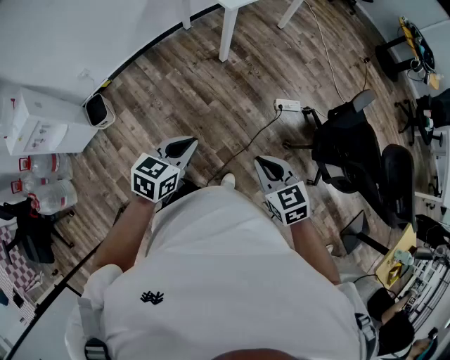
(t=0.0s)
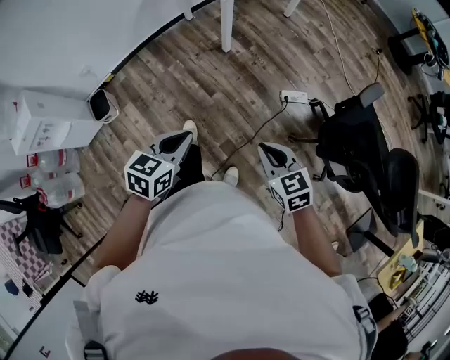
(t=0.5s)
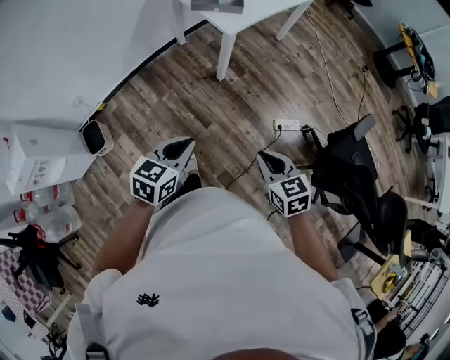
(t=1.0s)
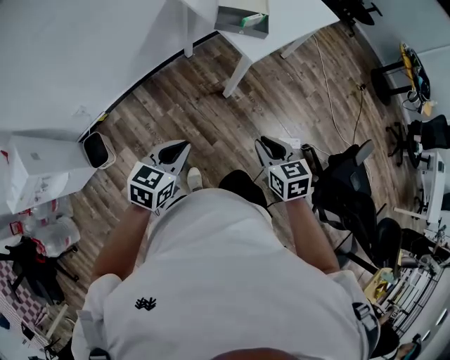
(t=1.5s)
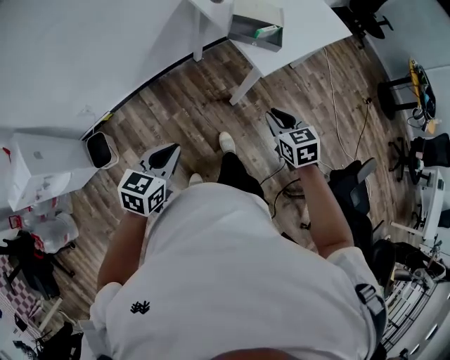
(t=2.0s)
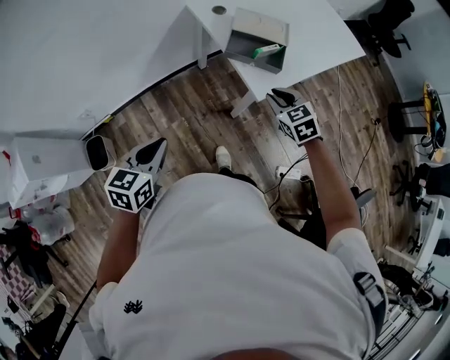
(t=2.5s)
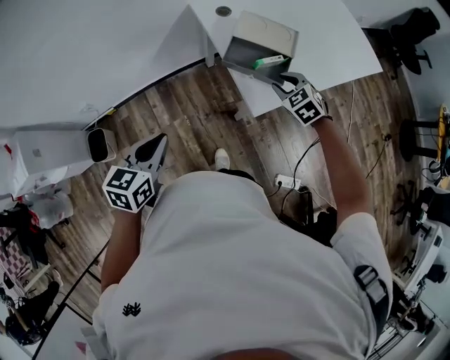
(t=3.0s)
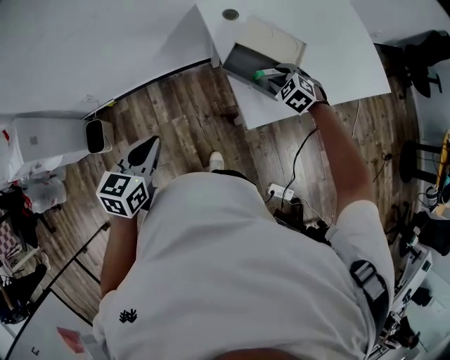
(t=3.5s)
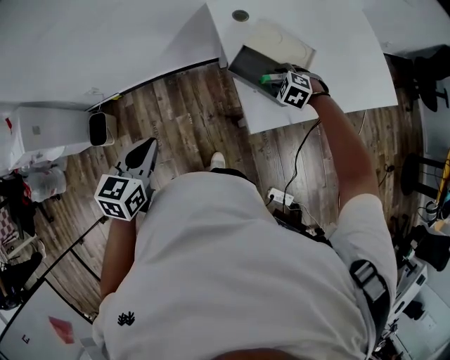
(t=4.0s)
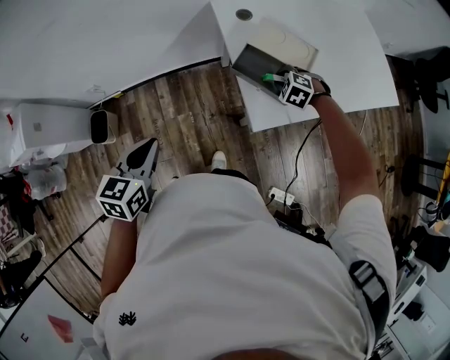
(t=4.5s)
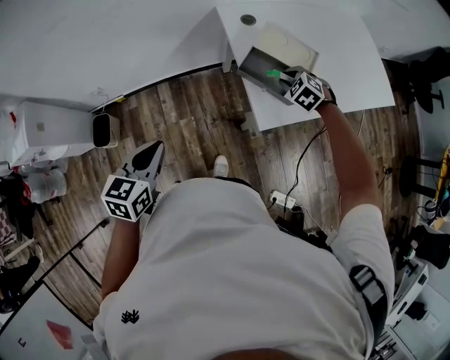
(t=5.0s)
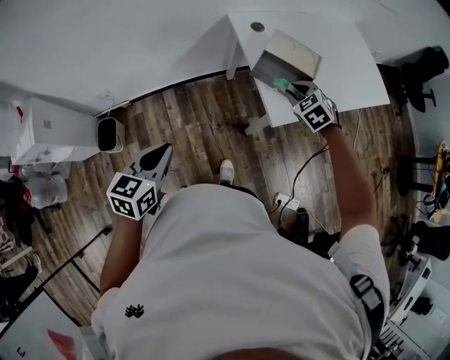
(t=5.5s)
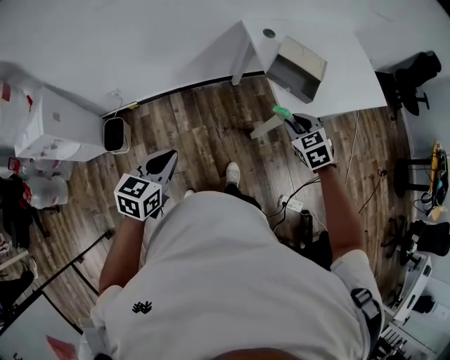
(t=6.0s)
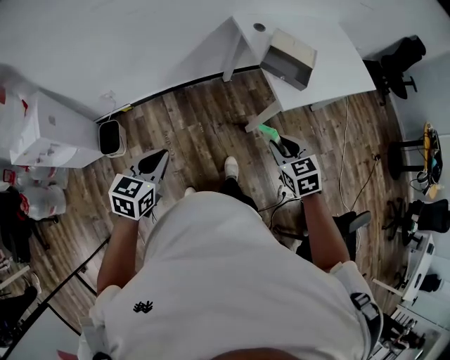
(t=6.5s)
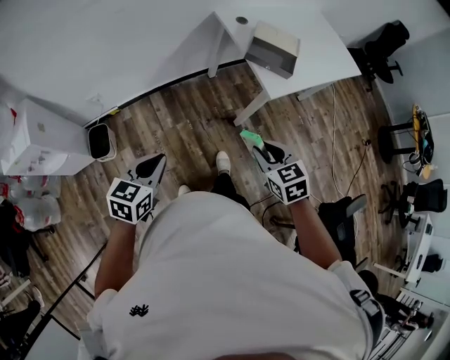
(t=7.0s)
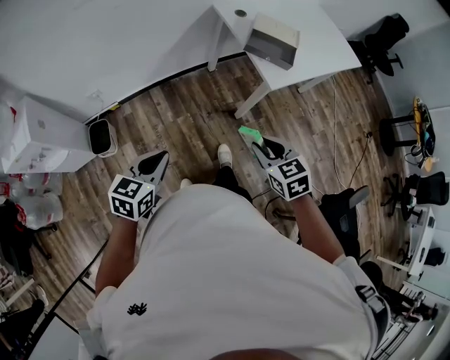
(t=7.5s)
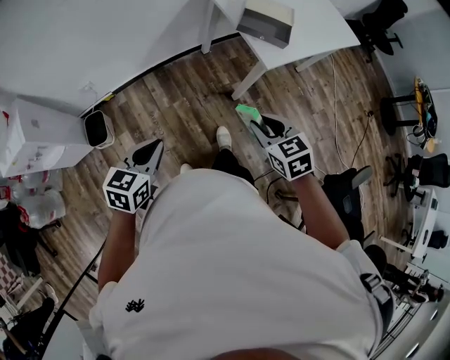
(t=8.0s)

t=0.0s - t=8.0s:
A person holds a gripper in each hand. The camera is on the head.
t=0.0s - t=2.0s: The right gripper heads forward, covering about 50 cm. The left gripper shifts some 35 cm forward and to the left.
t=2.0s - t=4.0s: The left gripper changes place by about 20 cm, and turns by roughly 30 degrees. The right gripper shifts by roughly 40 cm, rolls counterclockwise, seen from behind, by approximately 60 degrees, and opens up.
t=4.0s - t=6.0s: The right gripper is displaced backward, upward and to the left by roughly 30 cm, turns by roughly 40 degrees, and closes. Meanwhile the left gripper travels to the left and backward by about 15 cm.
t=6.0s - t=8.0s: The left gripper shifts some 10 cm backward. The right gripper moves backward, some 20 cm, and rotates approximately 20 degrees.

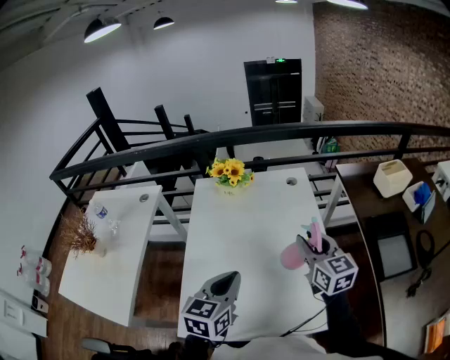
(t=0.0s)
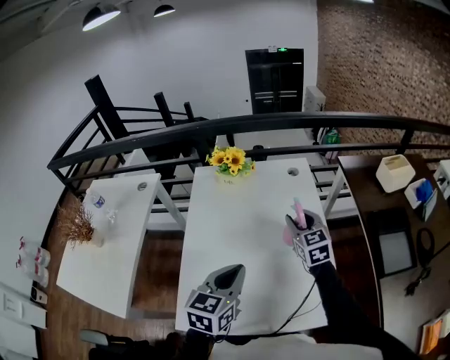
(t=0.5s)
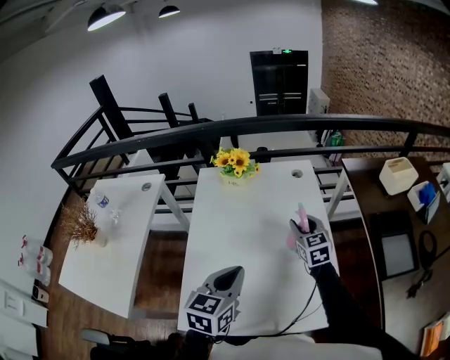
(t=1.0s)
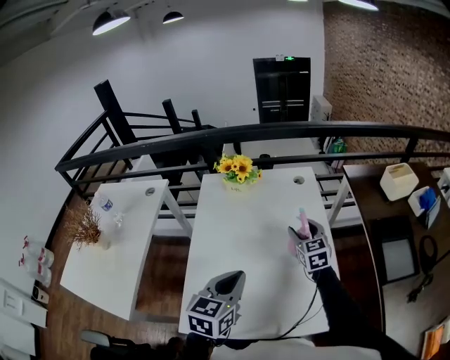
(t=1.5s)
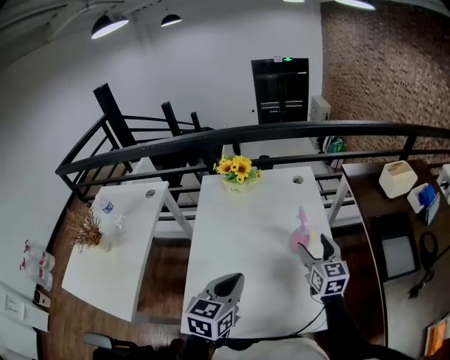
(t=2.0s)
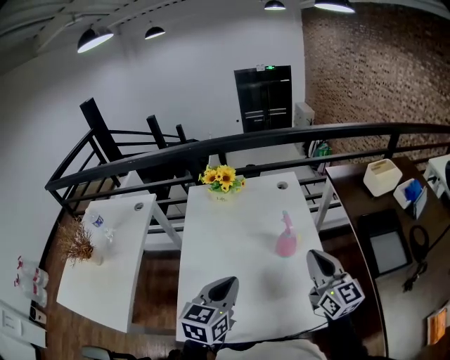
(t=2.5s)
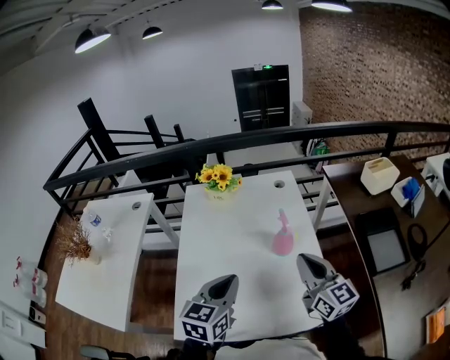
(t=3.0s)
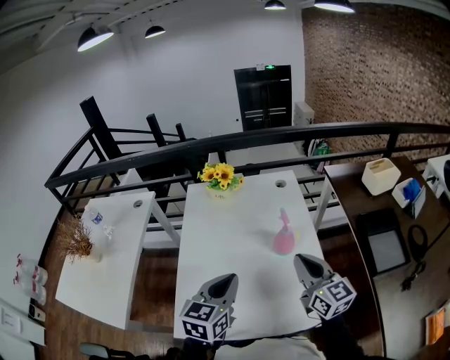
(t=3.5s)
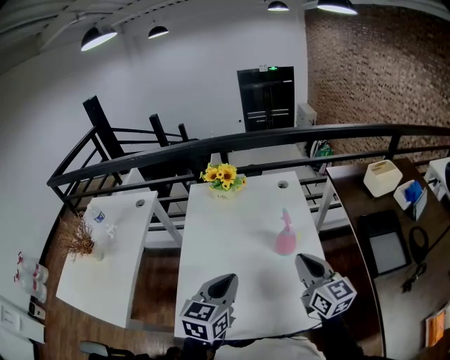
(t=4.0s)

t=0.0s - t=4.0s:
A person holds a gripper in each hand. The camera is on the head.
t=0.0s - t=2.0s: The right gripper is displaced downward by roughly 5 cm, travels forward and back again, roughly 10 cm each way, and opens up.
t=2.0s - t=4.0s: The right gripper heads backward and upward, covering approximately 10 cm, and closes its fingers.

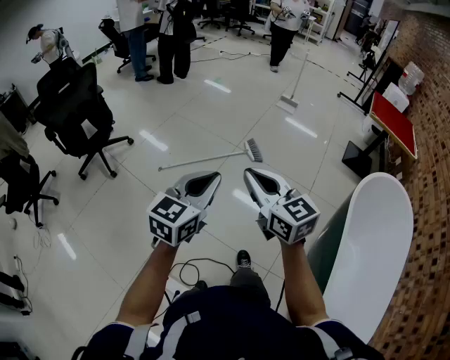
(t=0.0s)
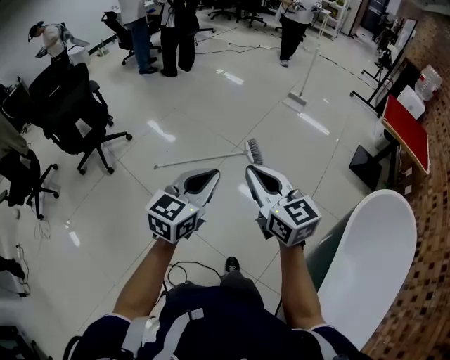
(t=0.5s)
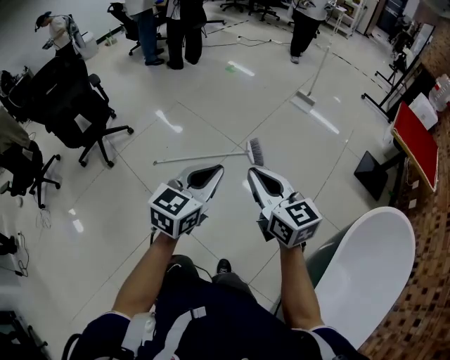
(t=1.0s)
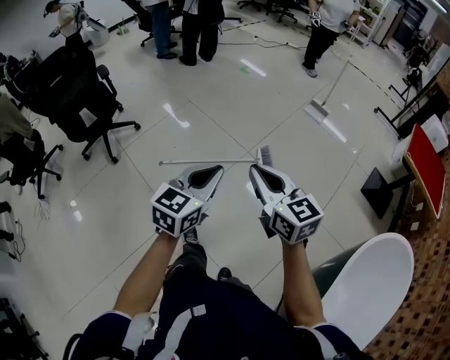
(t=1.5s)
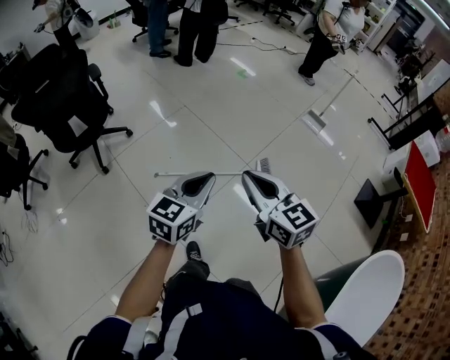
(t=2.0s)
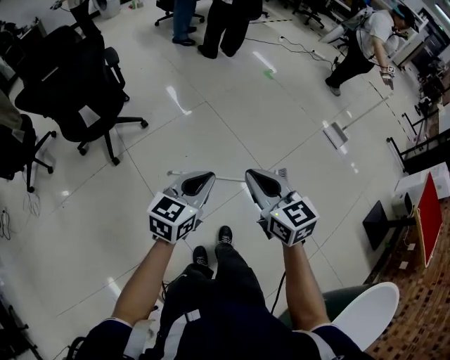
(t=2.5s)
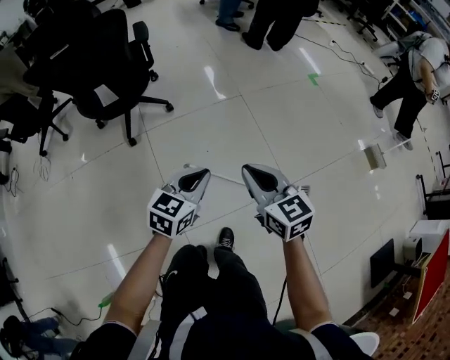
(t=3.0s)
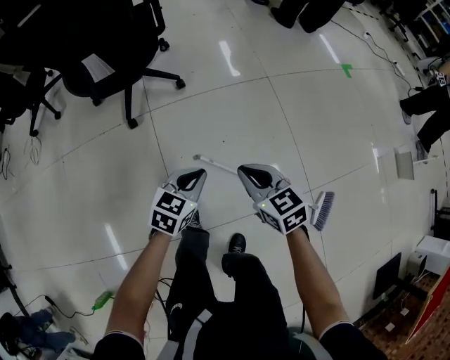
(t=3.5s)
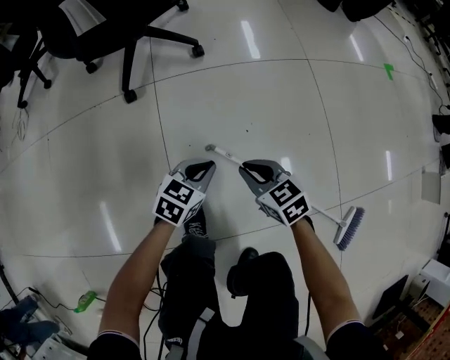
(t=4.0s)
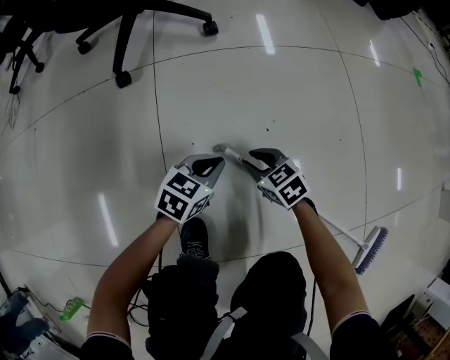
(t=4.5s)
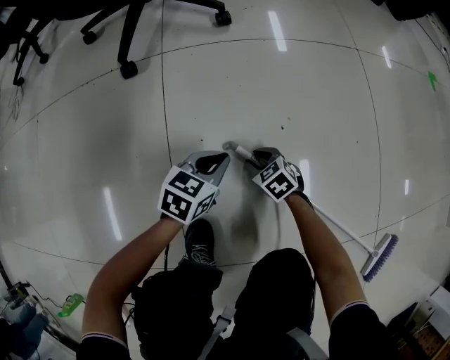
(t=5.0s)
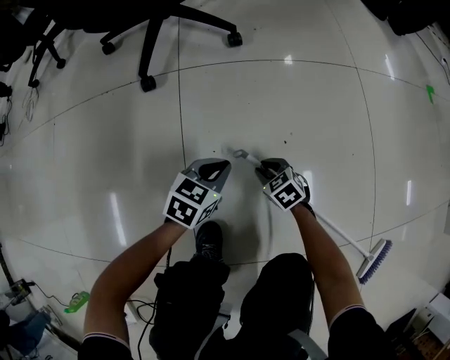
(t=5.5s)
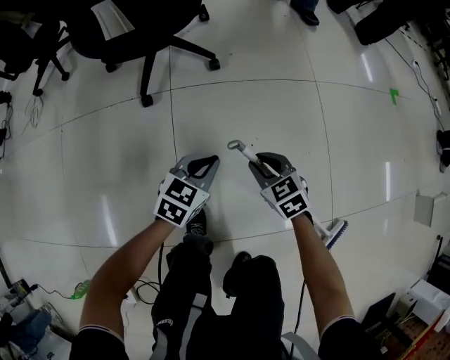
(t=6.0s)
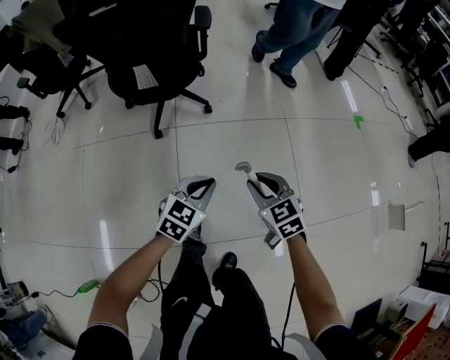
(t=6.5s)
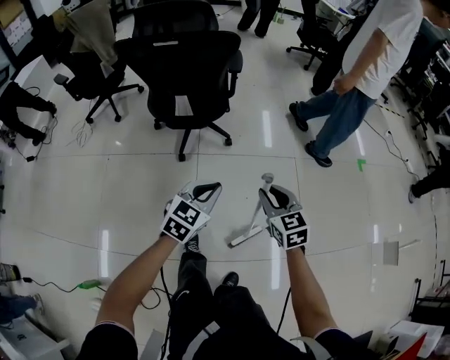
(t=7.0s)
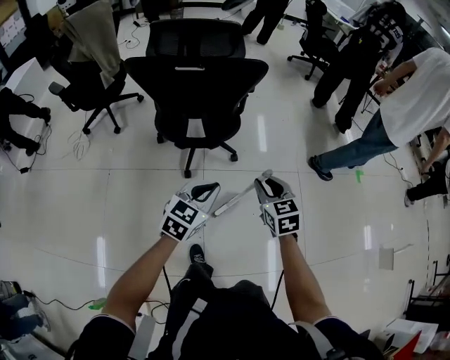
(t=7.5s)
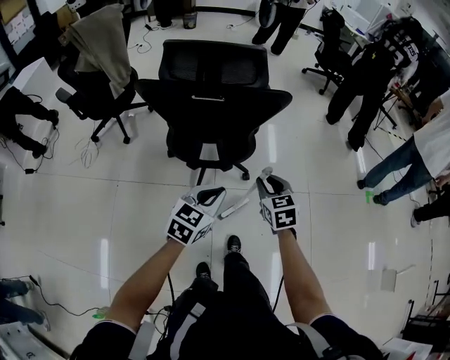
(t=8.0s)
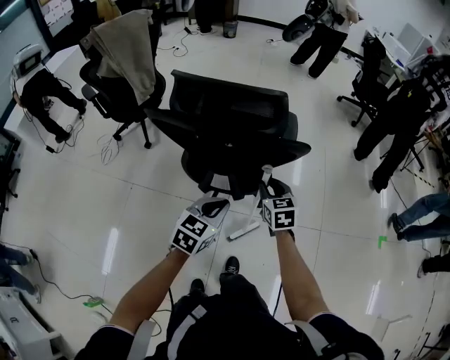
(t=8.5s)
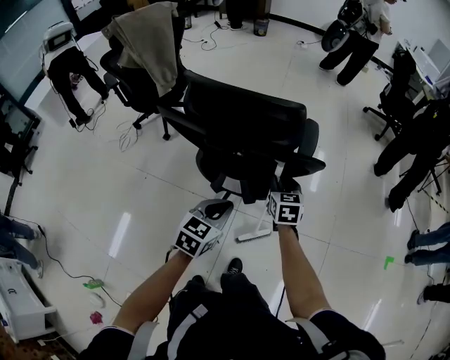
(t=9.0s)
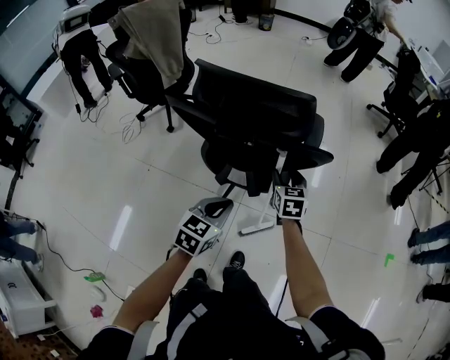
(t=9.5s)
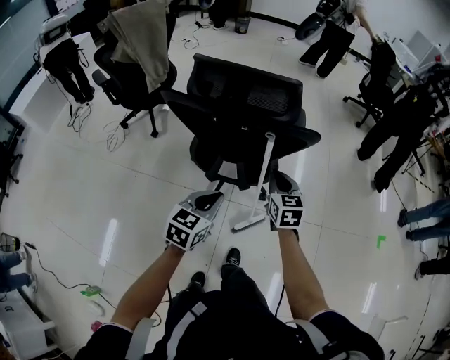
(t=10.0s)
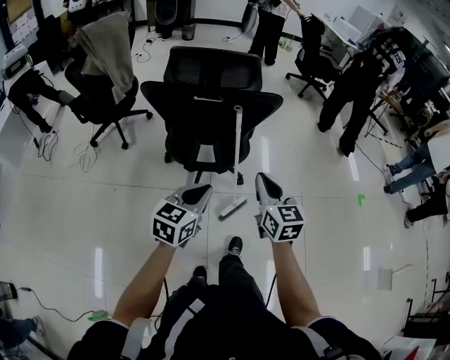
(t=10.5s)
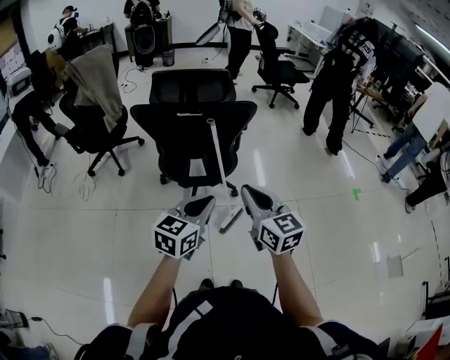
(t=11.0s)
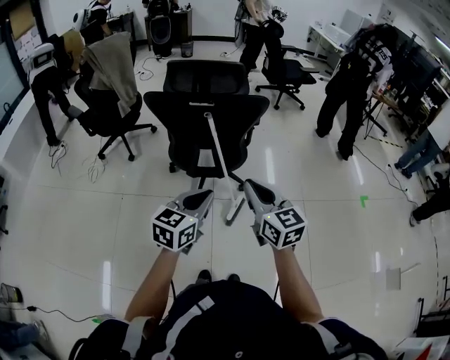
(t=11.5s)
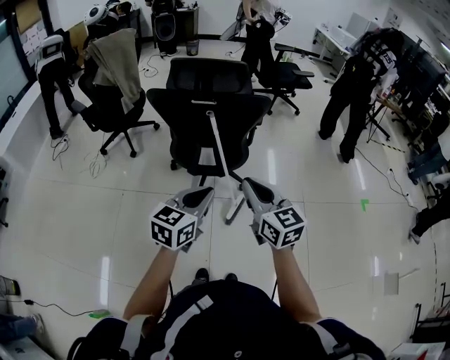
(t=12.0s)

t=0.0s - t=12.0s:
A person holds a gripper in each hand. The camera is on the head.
t=0.0s - t=2.0s: Both grippers move forward, approximately 35 cm.
t=2.0s - t=4.0s: The two grippers travel together, roughly 40 cm. Both grippers move downward, some 60 cm. The left gripper rotates roughly 40 degrees. Meanwhile the right gripper angles its fingers downward, by roughly 30 degrees.
t=4.0s - t=6.0s: The right gripper heads forward, covering some 5 cm, and goes downward and returns, roughly 30 cm each way. Meanwhile the left gripper moves roughly 20 cm downward and comes back.
t=6.0s - t=8.0s: The left gripper travels upward and to the left by about 50 cm, while the right gripper goes about 50 cm upward, forward and to the left.
t=8.0s - t=10.0s: The left gripper moves forward and to the left, about 10 cm, while the right gripper heads forward, covering some 10 cm, and closes its fingers.
t=10.0s - t=12.0s: The right gripper goes some 30 cm backward and upward, and rotates about 20 degrees, while the left gripper moves backward and upward, some 20 cm.

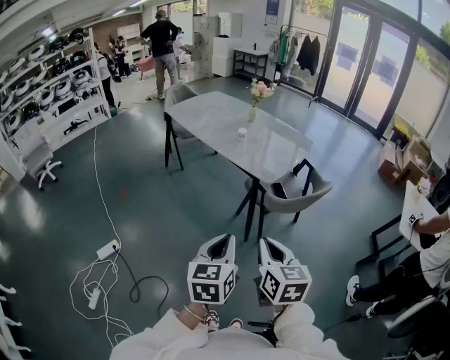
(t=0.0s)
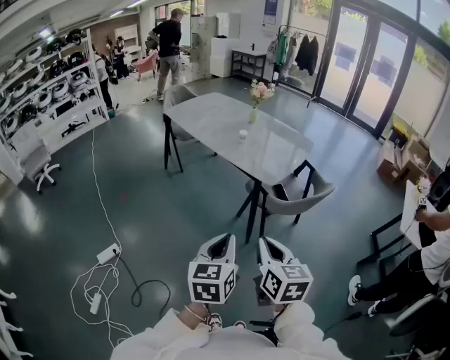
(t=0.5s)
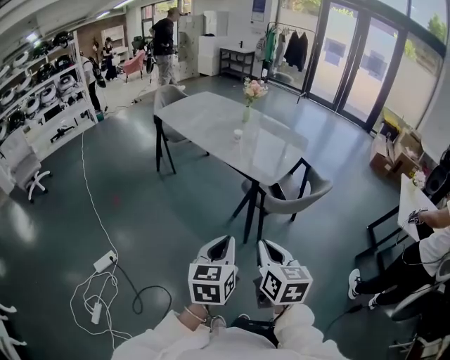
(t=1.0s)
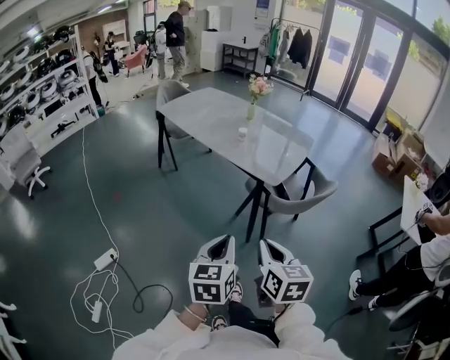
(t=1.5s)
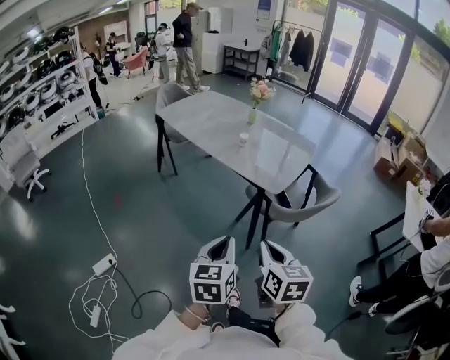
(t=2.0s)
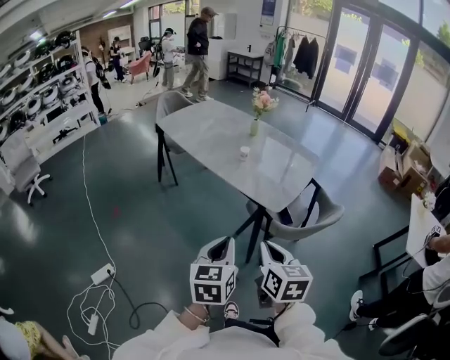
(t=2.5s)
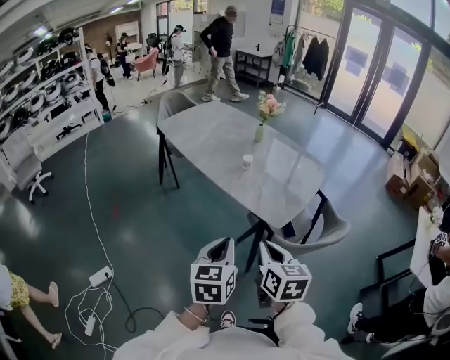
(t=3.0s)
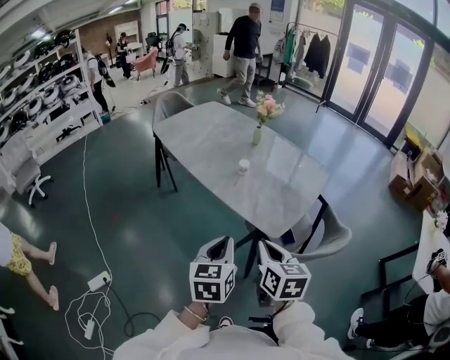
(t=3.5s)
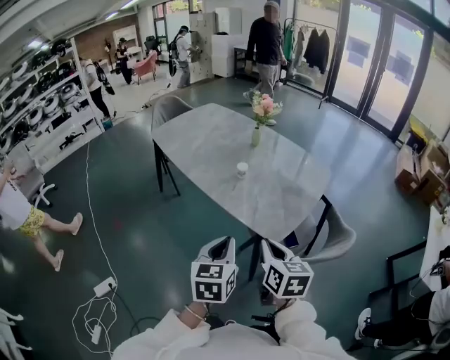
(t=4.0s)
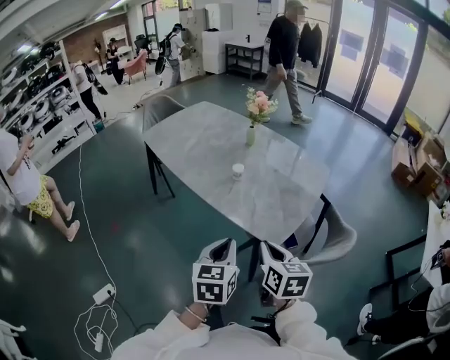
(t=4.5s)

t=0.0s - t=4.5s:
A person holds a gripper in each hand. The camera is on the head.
t=0.0s - t=2.0s: The grippers both shift forward and to the left by about 10 cm.
t=2.0s - t=4.5s: The two grippers go some 30 cm forward.
